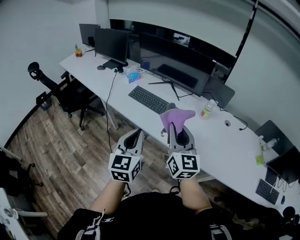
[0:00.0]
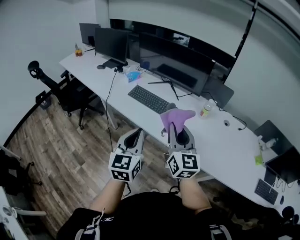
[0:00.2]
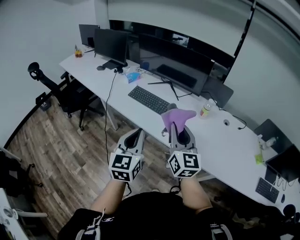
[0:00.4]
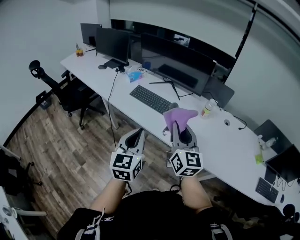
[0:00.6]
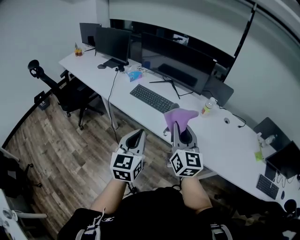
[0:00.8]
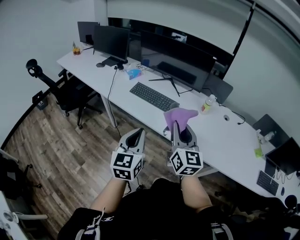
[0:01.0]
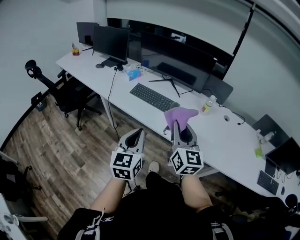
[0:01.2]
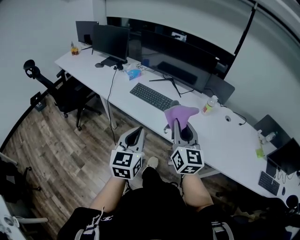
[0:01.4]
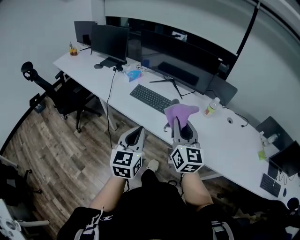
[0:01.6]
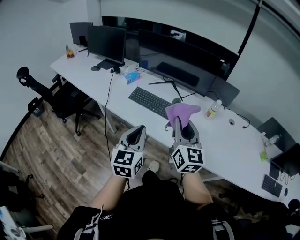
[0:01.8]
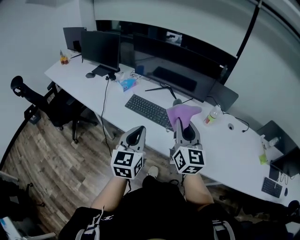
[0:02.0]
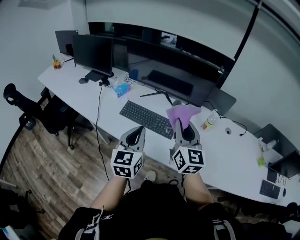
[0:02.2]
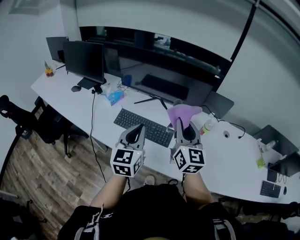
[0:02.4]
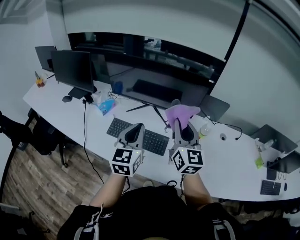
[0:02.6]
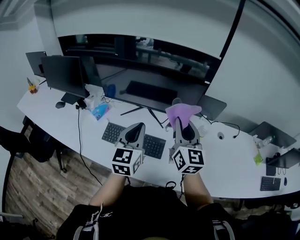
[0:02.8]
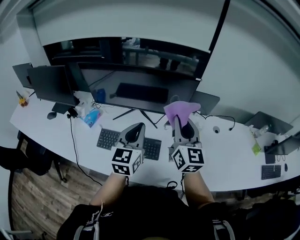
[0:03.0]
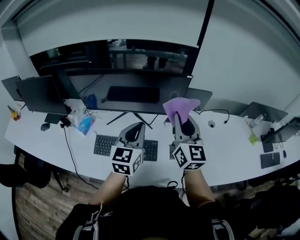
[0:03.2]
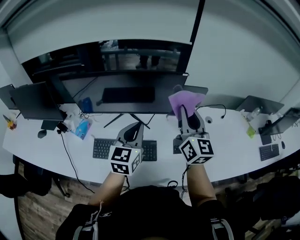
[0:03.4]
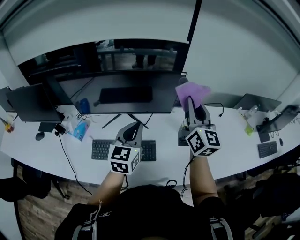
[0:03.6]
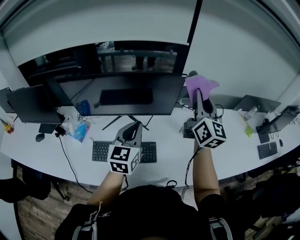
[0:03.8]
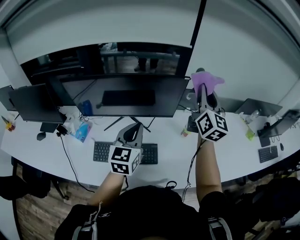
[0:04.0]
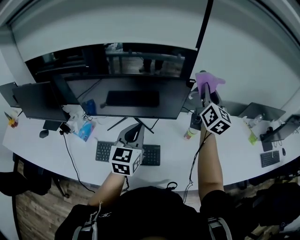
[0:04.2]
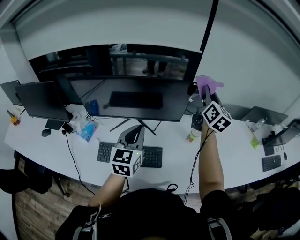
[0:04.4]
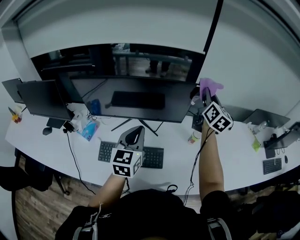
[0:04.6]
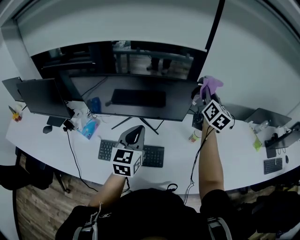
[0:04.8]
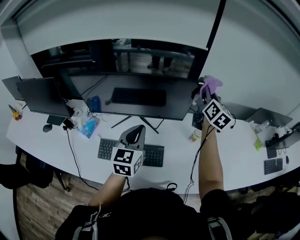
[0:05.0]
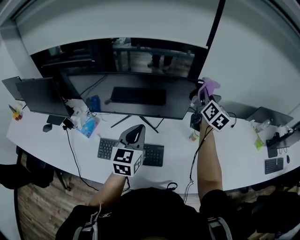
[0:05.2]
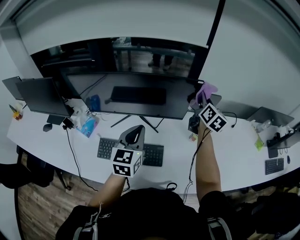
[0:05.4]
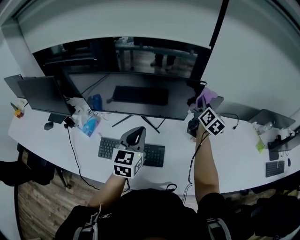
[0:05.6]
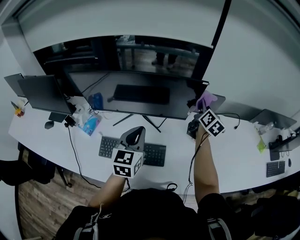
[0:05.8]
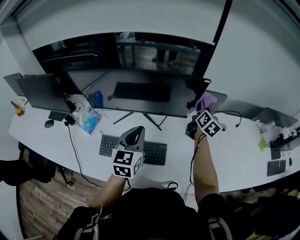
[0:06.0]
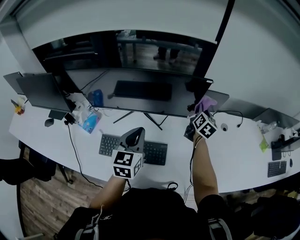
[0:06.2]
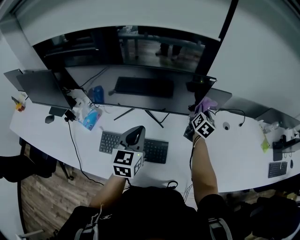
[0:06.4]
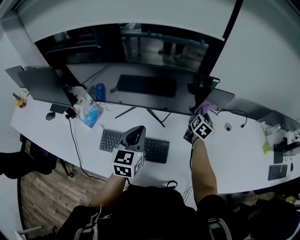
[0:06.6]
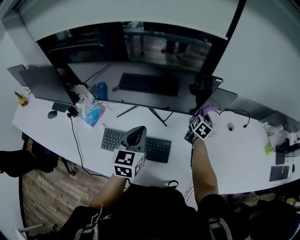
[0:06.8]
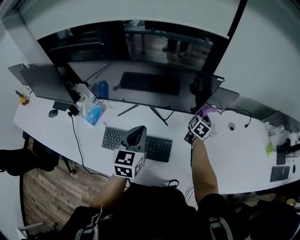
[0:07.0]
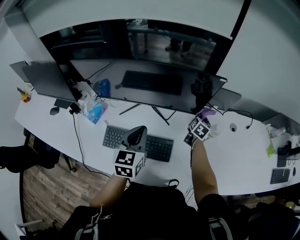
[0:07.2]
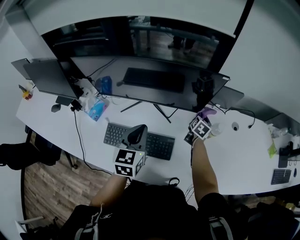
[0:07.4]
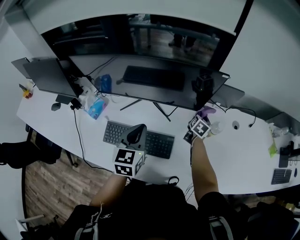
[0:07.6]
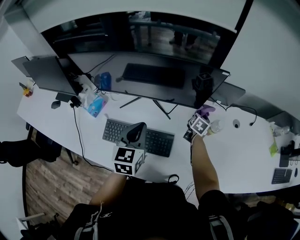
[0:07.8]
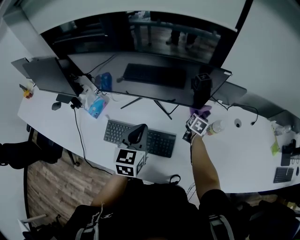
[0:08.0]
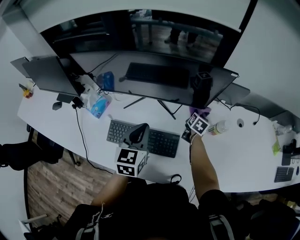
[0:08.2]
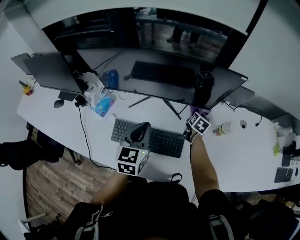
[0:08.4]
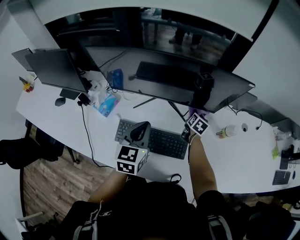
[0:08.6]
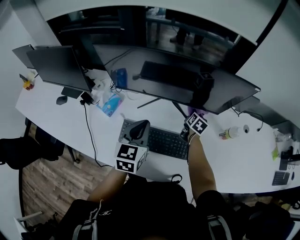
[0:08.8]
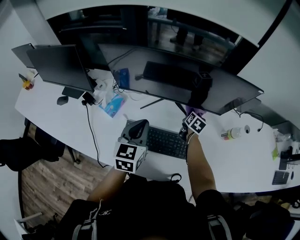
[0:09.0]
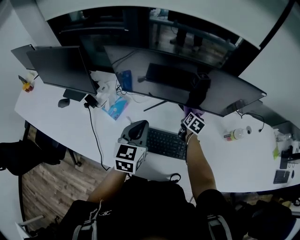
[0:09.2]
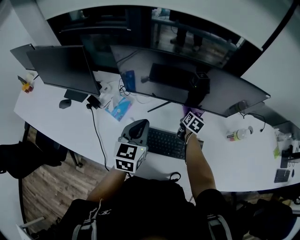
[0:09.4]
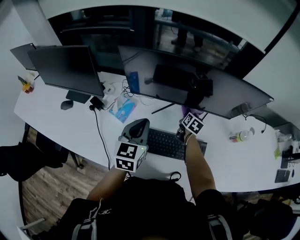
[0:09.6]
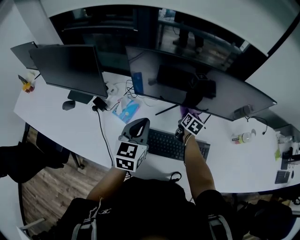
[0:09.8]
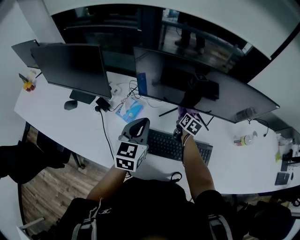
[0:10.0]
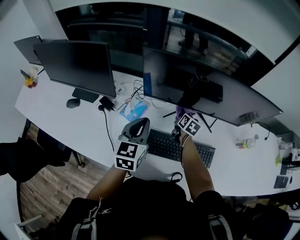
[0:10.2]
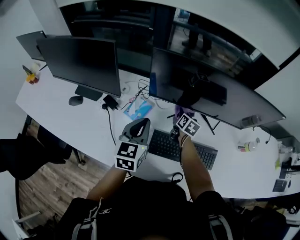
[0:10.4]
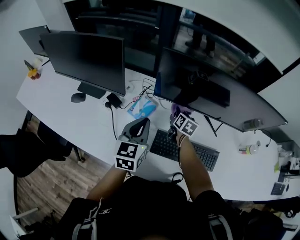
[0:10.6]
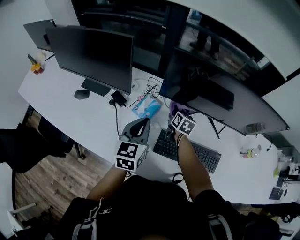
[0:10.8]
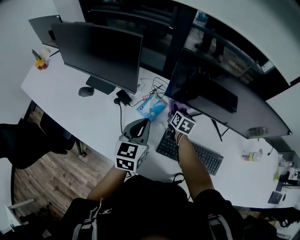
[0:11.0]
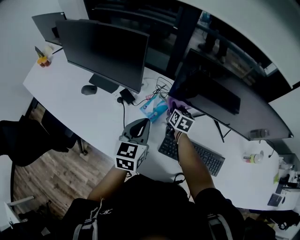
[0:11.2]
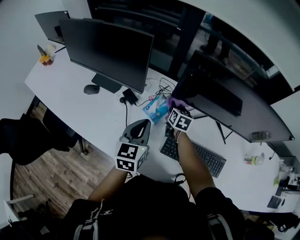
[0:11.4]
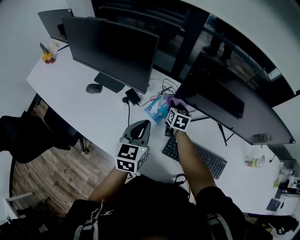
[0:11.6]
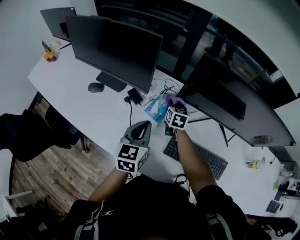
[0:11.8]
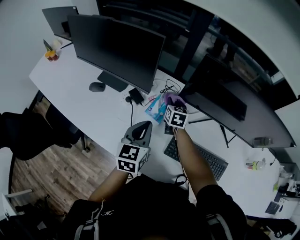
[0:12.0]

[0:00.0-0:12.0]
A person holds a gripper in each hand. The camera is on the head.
0:00.0 to 0:01.6: The grippers both shift to the left by some 5 cm.
0:01.6 to 0:03.0: The grippers both shift forward by about 35 cm. The right gripper changes its angle by about 20 degrees; the left gripper changes its angle by roughly 20 degrees.
0:03.0 to 0:04.4: The right gripper shifts approximately 20 cm forward and to the right, and changes its angle by approximately 20 degrees. The left gripper goes some 5 cm forward.
0:04.4 to 0:06.0: The left gripper shifts by approximately 5 cm. Meanwhile the right gripper is displaced downward by approximately 20 cm.
0:06.0 to 0:07.6: The right gripper goes some 20 cm downward, and changes its angle by roughly 30 degrees.
0:07.6 to 0:09.0: Both grippers move to the left, about 20 cm.
0:09.0 to 0:10.4: Both grippers move to the left, some 25 cm.
0:10.4 to 0:12.0: The left gripper heads to the left, covering approximately 10 cm, while the right gripper is displaced to the left by about 25 cm, and turns by some 30 degrees.

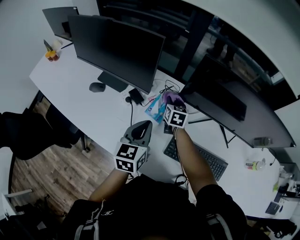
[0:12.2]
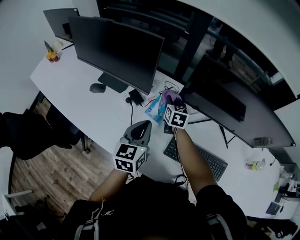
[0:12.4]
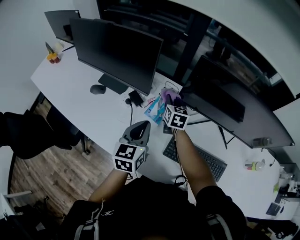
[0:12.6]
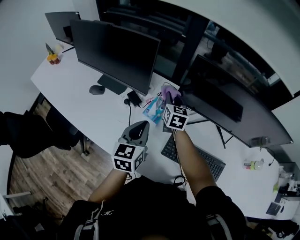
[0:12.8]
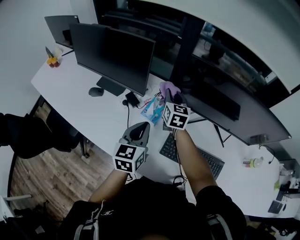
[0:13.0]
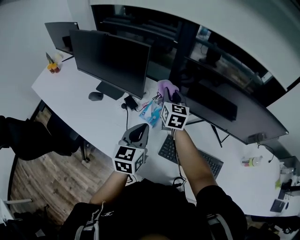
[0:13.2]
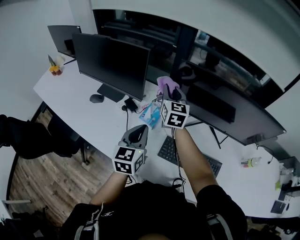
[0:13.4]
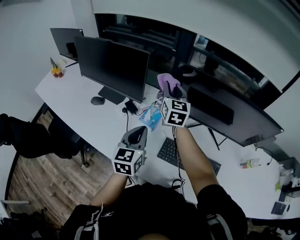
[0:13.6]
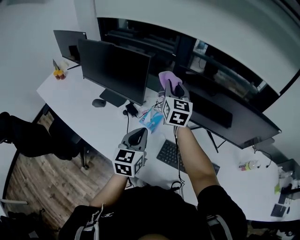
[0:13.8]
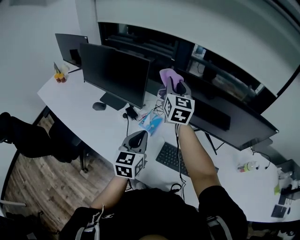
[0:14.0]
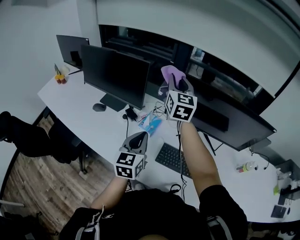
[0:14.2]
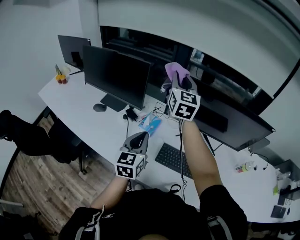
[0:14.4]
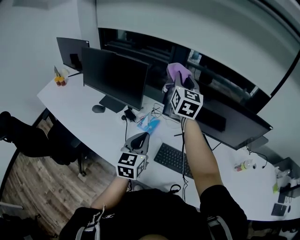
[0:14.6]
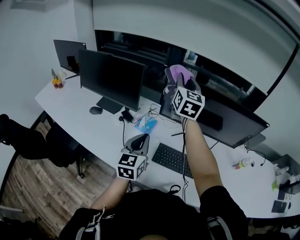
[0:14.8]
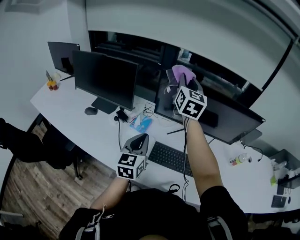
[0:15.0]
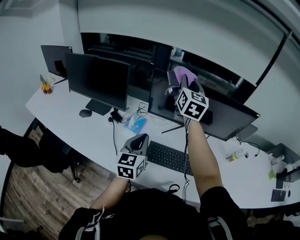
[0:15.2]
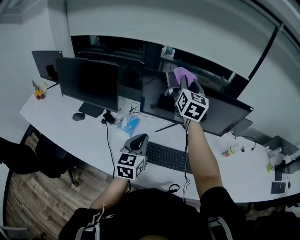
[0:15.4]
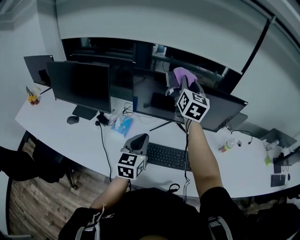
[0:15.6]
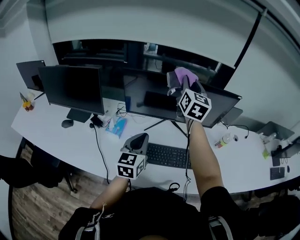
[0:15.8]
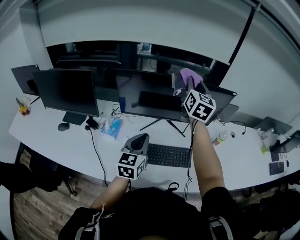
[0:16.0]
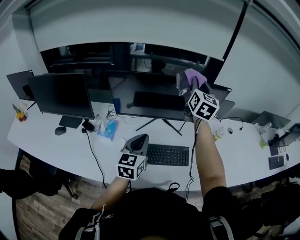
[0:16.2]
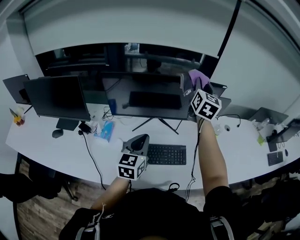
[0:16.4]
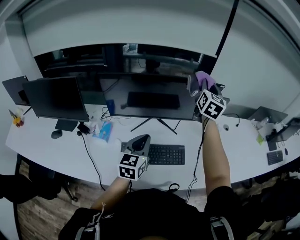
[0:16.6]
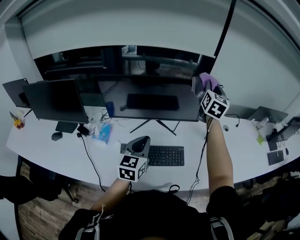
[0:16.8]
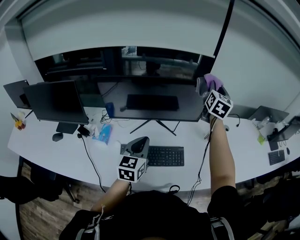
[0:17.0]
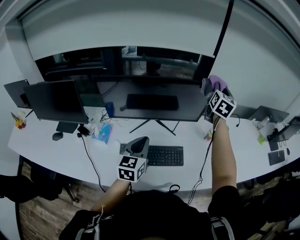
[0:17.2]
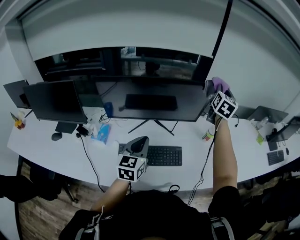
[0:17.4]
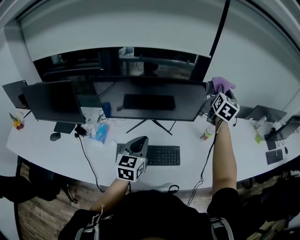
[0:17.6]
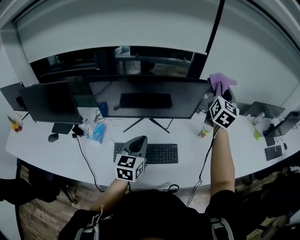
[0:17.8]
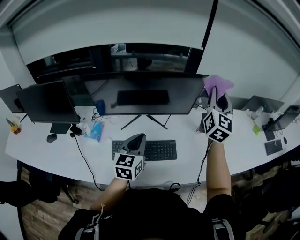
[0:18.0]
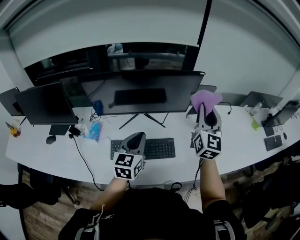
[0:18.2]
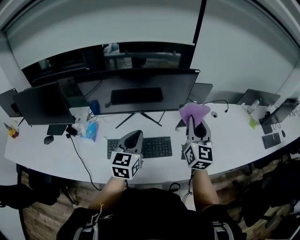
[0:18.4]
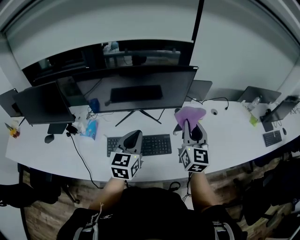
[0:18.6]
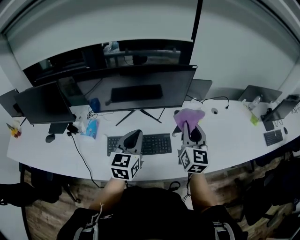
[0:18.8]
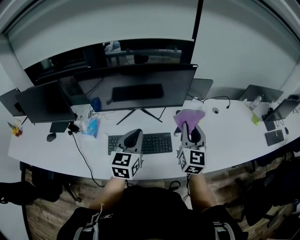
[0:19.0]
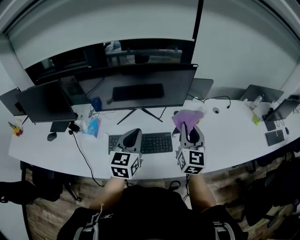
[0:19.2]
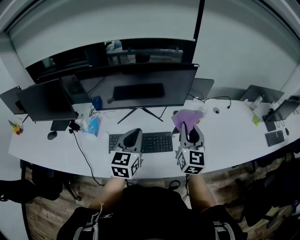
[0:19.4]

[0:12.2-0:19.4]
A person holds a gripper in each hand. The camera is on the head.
0:12.2 to 0:13.6: The right gripper travels upward by approximately 25 cm, and swivels approximately 30 degrees; the left gripper travels backward and upward by roughly 10 cm.
0:13.6 to 0:15.0: The right gripper shifts roughly 20 cm upward and to the right, while the left gripper shifts about 10 cm backward and to the right.
0:15.0 to 0:16.6: The left gripper moves some 20 cm, and swivels approximately 20 degrees. The right gripper moves approximately 40 cm, and rotates approximately 30 degrees.
0:16.6 to 0:18.0: The left gripper heads to the right, covering some 5 cm; the right gripper heads to the right and backward, covering about 15 cm.
0:18.0 to 0:19.4: The left gripper moves some 5 cm, while the right gripper heads downward and backward, covering approximately 20 cm.

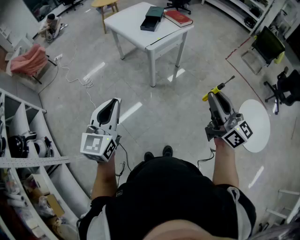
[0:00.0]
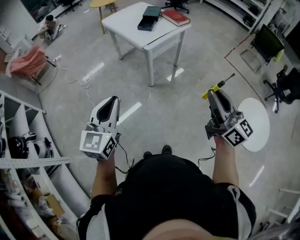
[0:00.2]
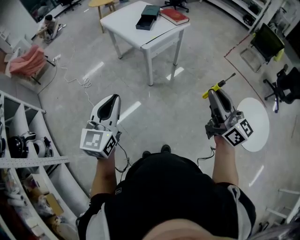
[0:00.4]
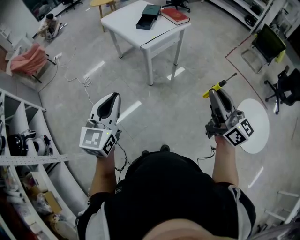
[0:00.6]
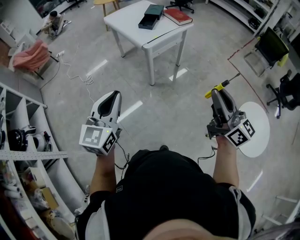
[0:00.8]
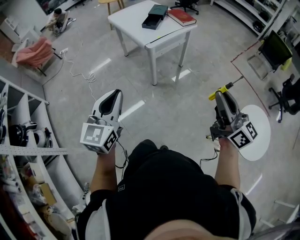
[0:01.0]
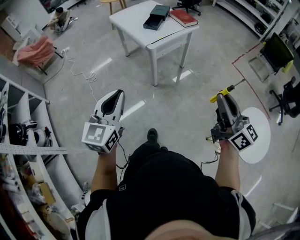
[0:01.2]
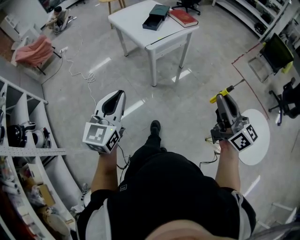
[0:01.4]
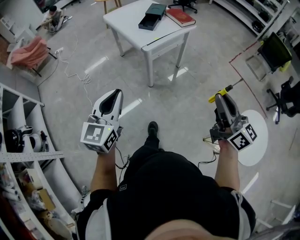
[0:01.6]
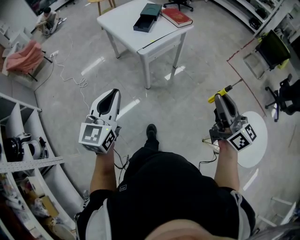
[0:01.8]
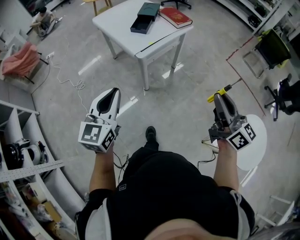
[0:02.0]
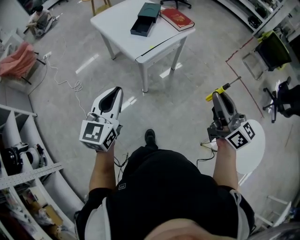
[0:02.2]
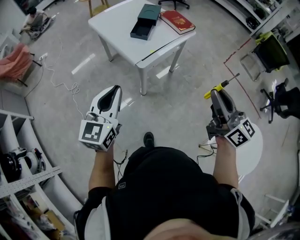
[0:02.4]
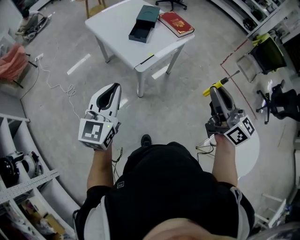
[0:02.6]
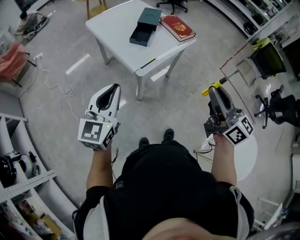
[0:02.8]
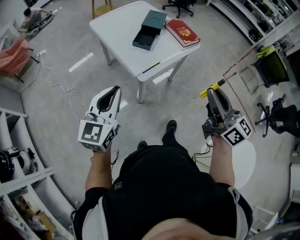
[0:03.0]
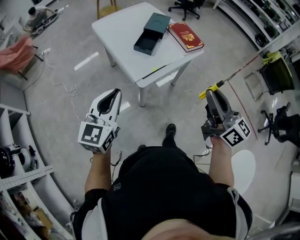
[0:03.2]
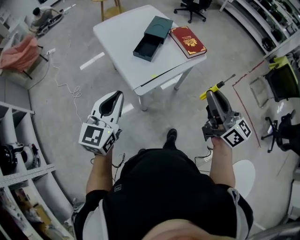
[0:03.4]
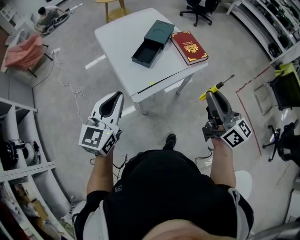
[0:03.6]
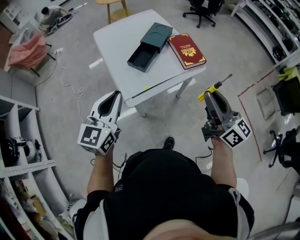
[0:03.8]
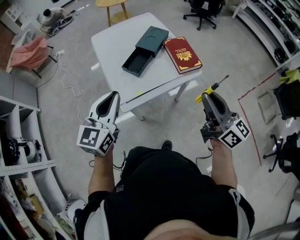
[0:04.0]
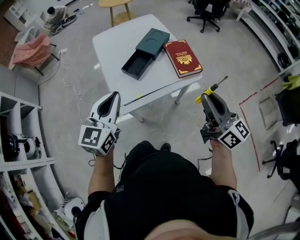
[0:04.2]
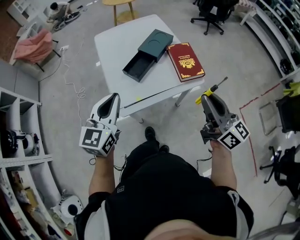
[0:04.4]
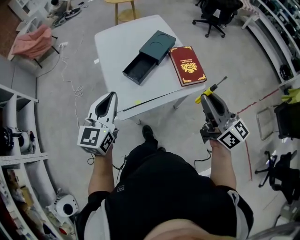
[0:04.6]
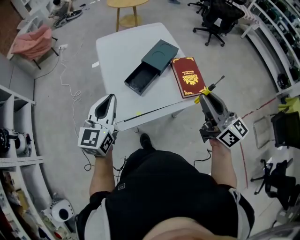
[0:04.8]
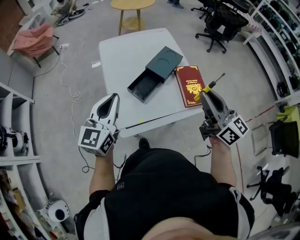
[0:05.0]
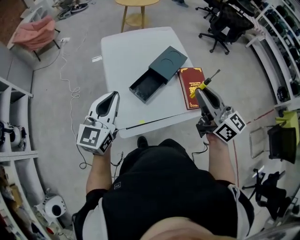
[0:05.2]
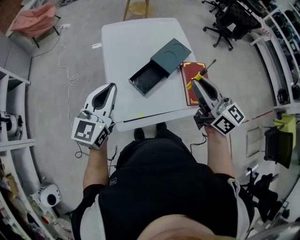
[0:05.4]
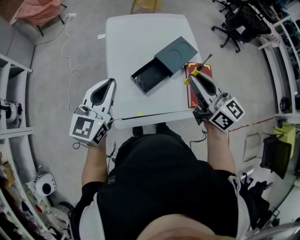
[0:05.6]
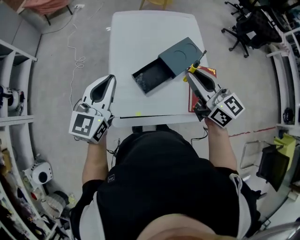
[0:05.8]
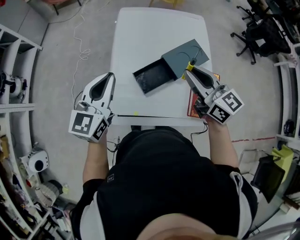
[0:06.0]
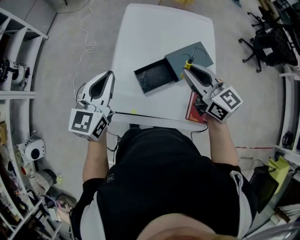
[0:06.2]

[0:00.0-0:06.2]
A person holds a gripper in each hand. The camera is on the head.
0:00.0 to 0:01.6: The two grippers go approximately 10 cm to the right and forward.
0:01.6 to 0:03.2: The two grippers go approximately 35 cm forward.
0:03.2 to 0:04.6: The right gripper is displaced forward and to the right by about 30 cm. The left gripper shifts some 25 cm to the right and forward.
0:04.6 to 0:06.2: The right gripper moves about 35 cm, and swivels about 40 degrees. Meanwhile the left gripper moves roughly 20 cm, and rotates about 20 degrees.
